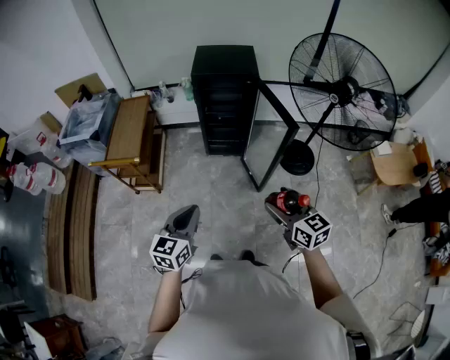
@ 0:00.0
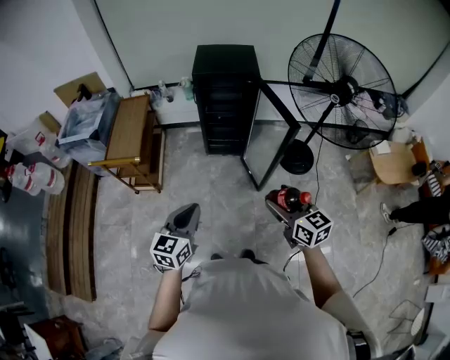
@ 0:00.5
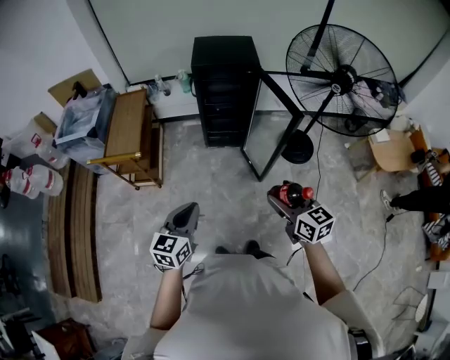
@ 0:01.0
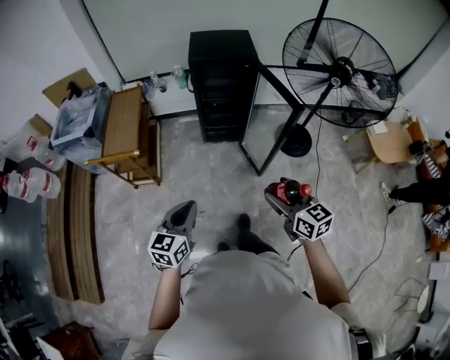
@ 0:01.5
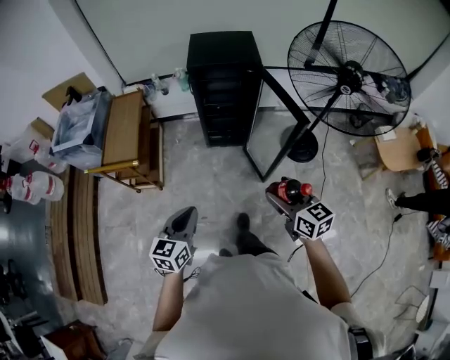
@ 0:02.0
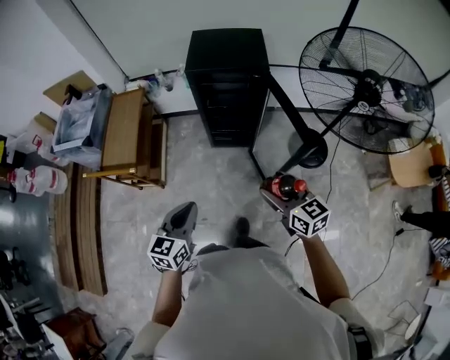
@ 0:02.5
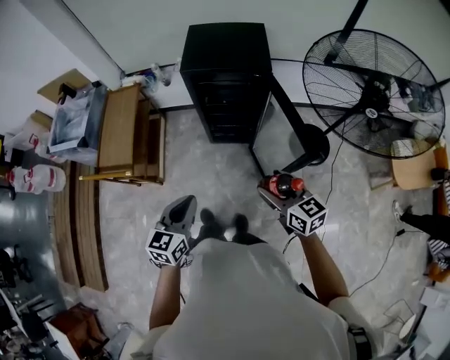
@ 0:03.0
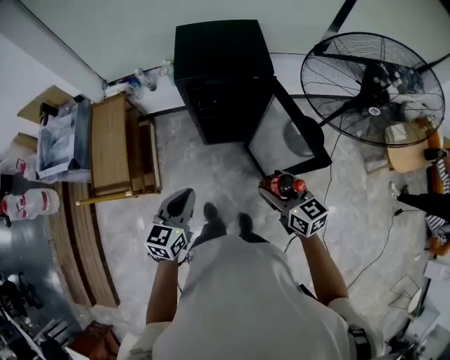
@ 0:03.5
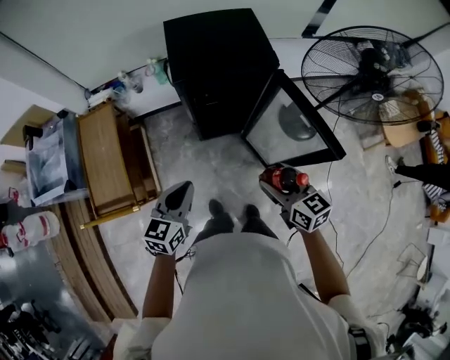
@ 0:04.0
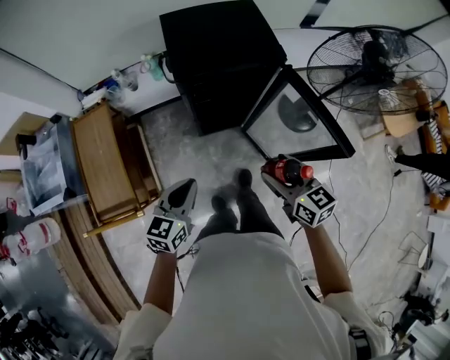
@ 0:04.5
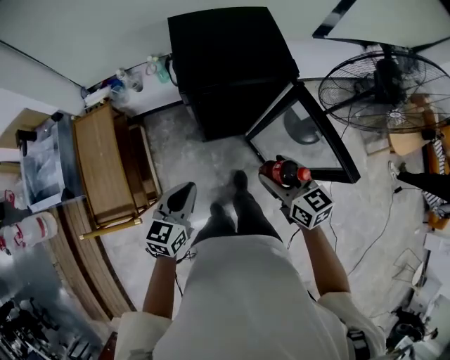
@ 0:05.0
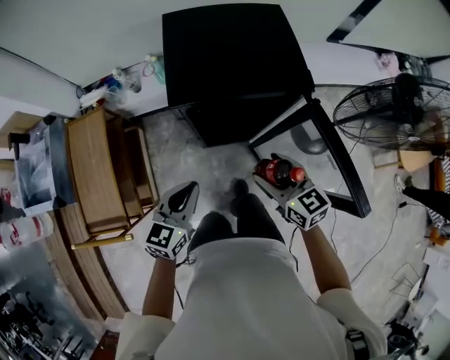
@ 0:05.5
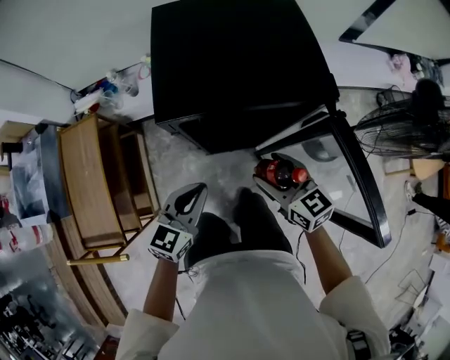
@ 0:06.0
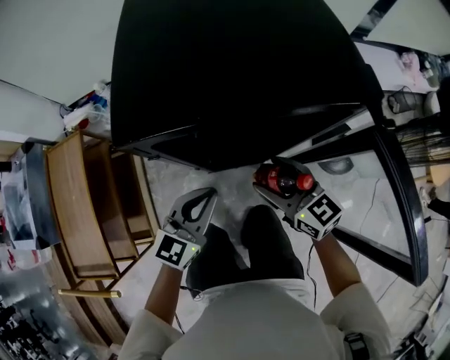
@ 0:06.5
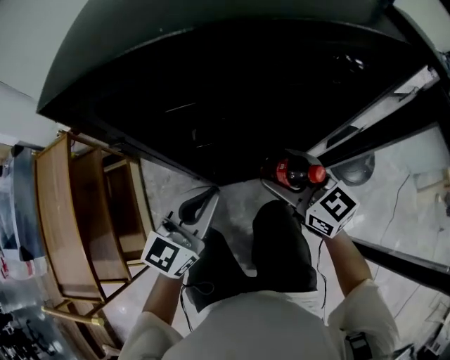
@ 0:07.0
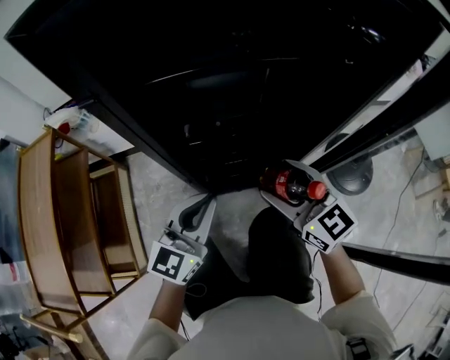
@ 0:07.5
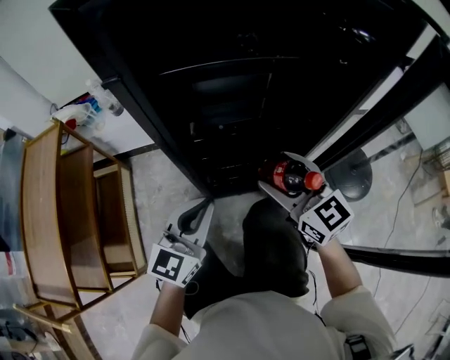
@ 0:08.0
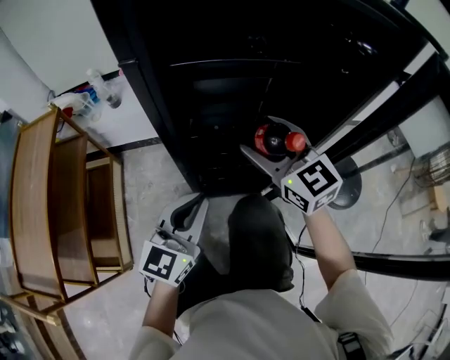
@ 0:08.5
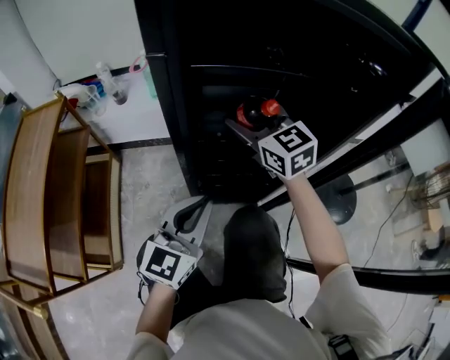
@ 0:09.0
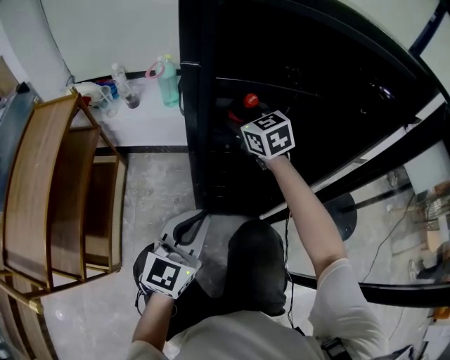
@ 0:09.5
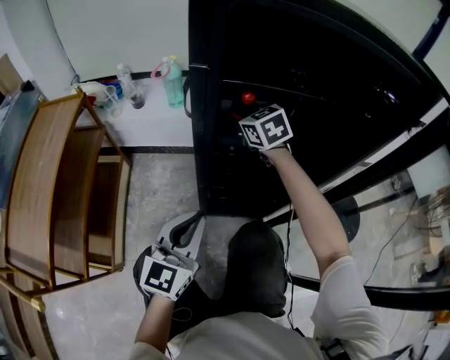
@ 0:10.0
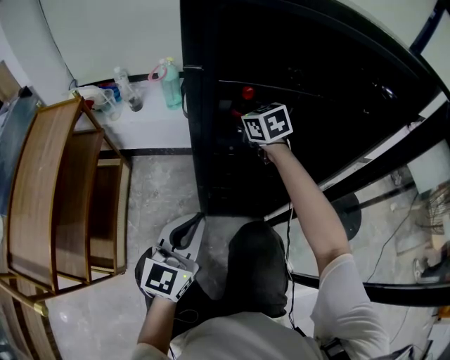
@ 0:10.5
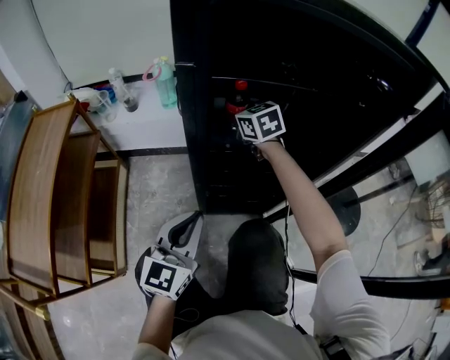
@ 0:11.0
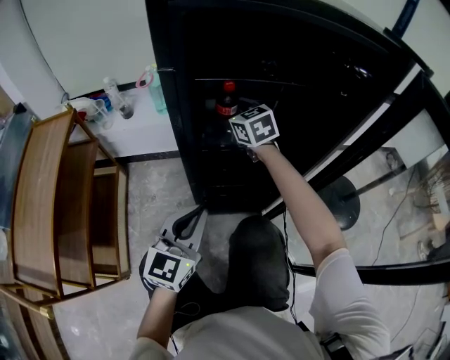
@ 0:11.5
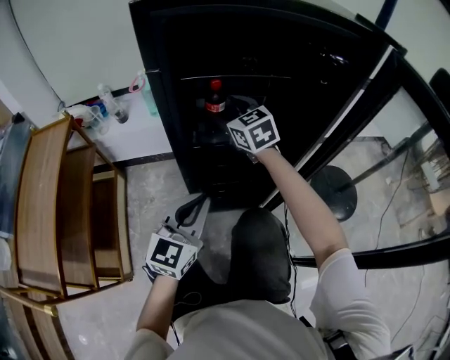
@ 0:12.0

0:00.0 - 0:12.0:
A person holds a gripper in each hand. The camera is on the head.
0:00.0 - 0:02.0: The two grippers go some 5 cm forward.
0:02.0 - 0:04.0: Both grippers travel together forward, approximately 35 cm.
0:04.0 - 0:06.0: The two grippers go about 30 cm forward and downward.
0:06.0 - 0:08.0: The grippers both shift downward by some 25 cm. The right gripper rotates about 20 degrees.
0:08.0 - 0:10.0: The left gripper travels to the left by some 5 cm. The right gripper goes roughly 25 cm forward and to the left, and turns by some 20 degrees.
0:10.0 - 0:12.0: The right gripper moves about 5 cm. The left gripper goes approximately 5 cm to the right.

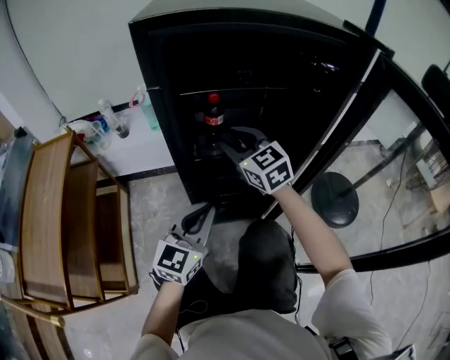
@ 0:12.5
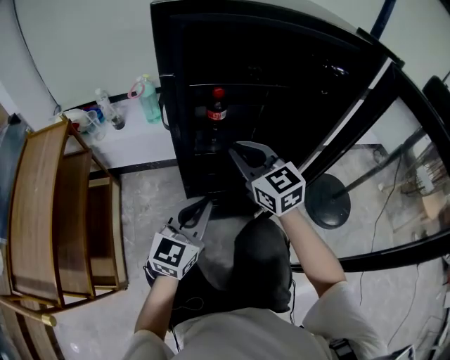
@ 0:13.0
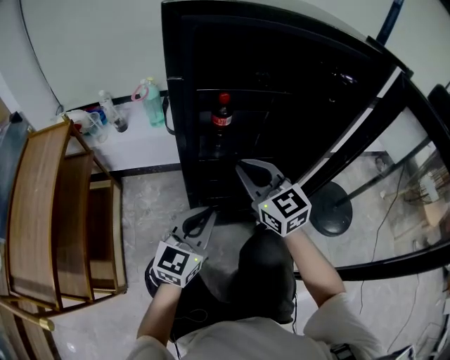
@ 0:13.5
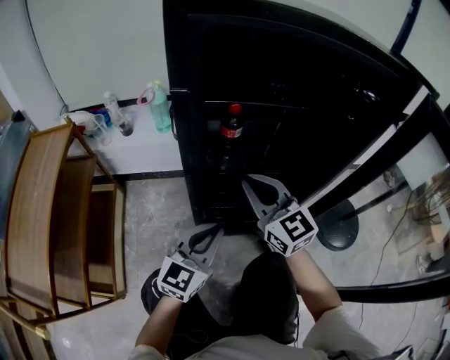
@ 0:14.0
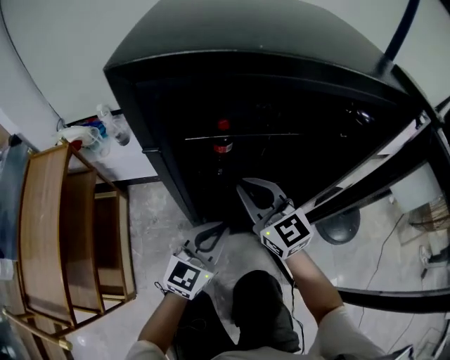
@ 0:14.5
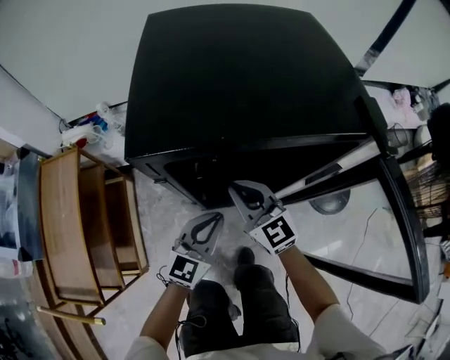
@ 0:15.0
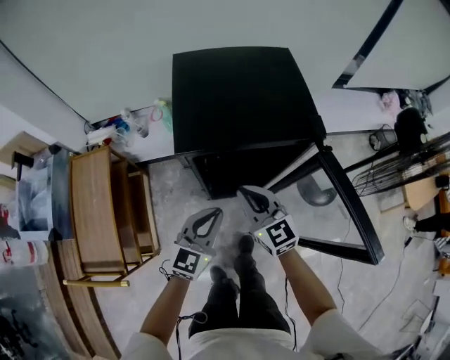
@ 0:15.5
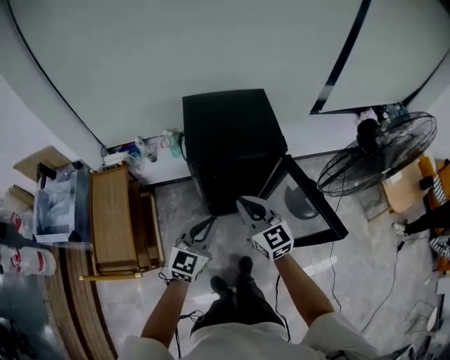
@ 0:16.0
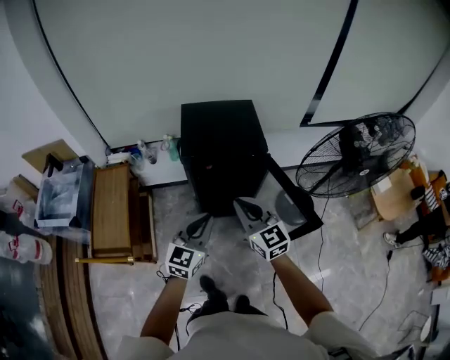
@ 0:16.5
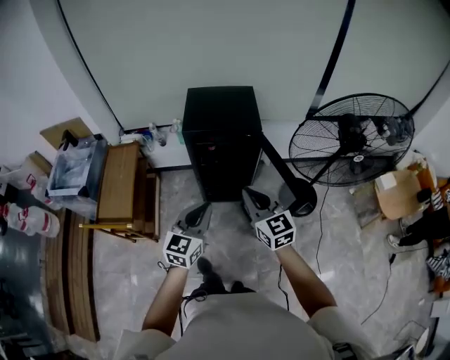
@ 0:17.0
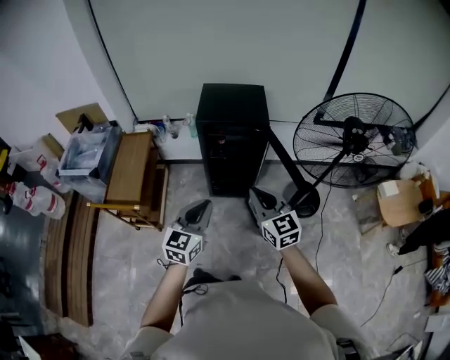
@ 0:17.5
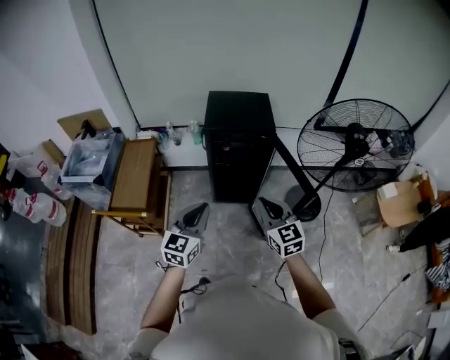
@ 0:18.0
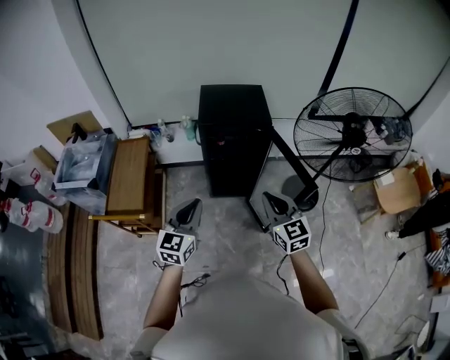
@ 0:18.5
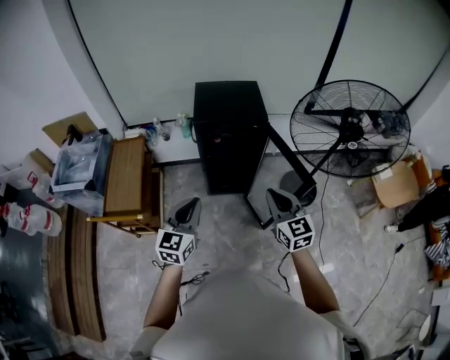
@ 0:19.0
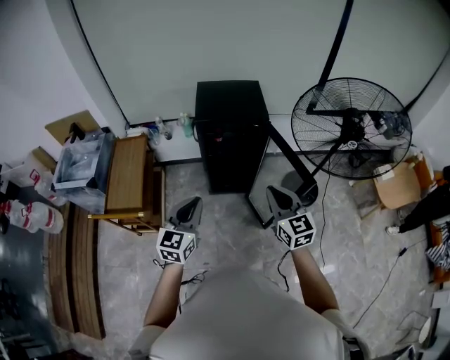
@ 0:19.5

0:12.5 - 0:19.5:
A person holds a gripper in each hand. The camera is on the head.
0:12.5 - 0:14.5: The left gripper travels forward by about 5 cm, while the right gripper closes its fingers.
0:14.5 - 0:16.0: The right gripper moves upward and backward, approximately 40 cm; the left gripper travels upward by some 40 cm.
0:16.0 - 0:17.5: The left gripper is displaced backward and upward by about 30 cm; the right gripper heads backward, to the right and upward, covering approximately 30 cm.
0:17.5 - 0:19.5: The left gripper shifts about 10 cm to the left.

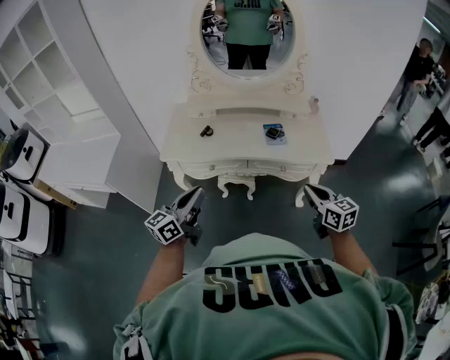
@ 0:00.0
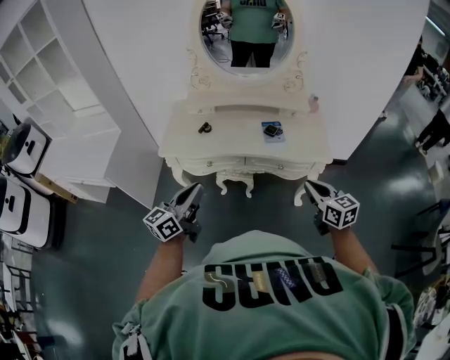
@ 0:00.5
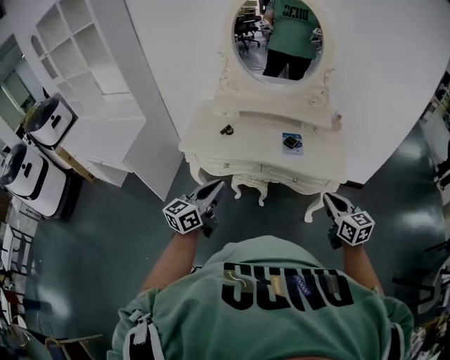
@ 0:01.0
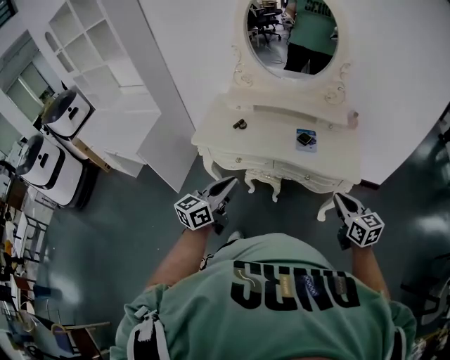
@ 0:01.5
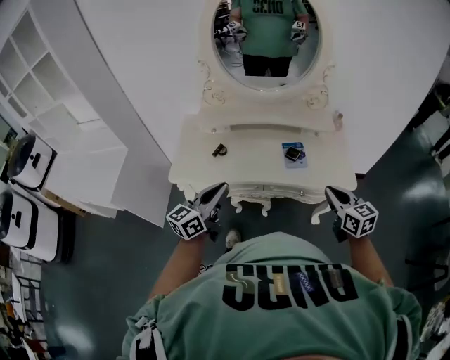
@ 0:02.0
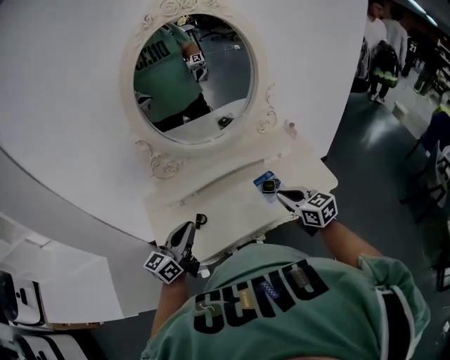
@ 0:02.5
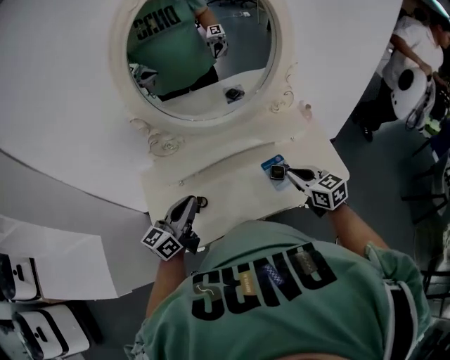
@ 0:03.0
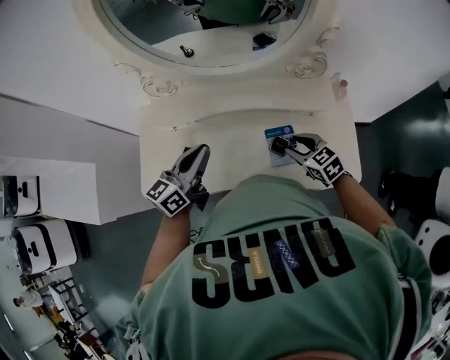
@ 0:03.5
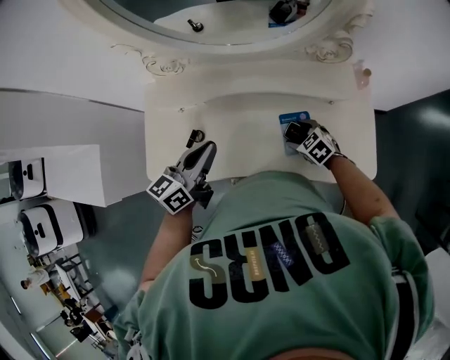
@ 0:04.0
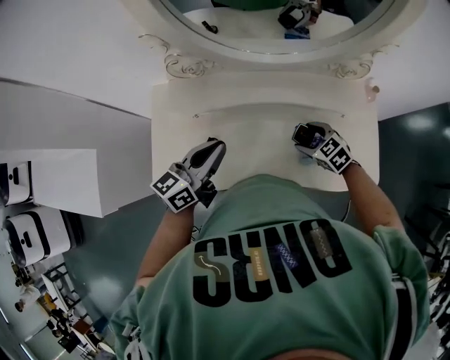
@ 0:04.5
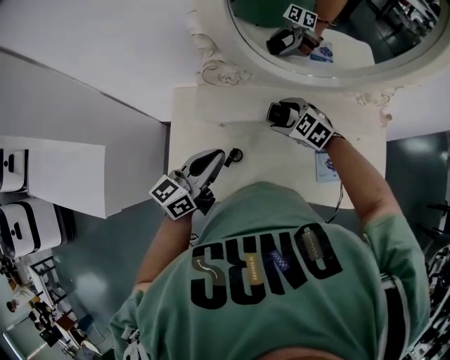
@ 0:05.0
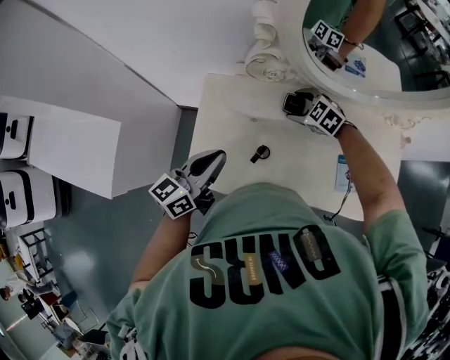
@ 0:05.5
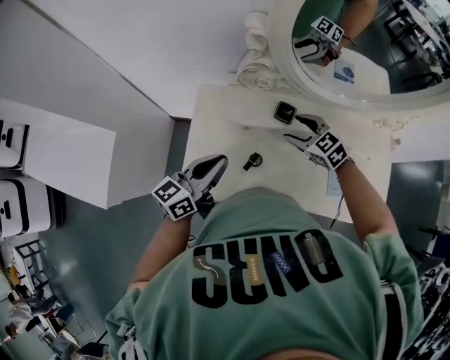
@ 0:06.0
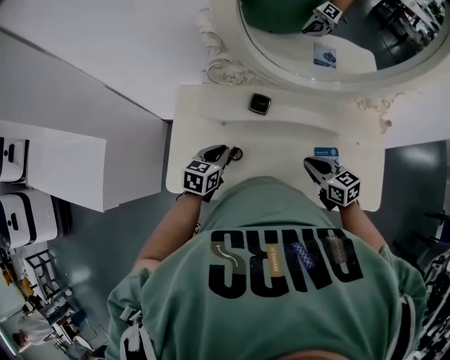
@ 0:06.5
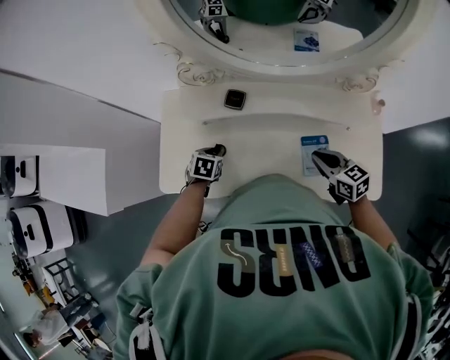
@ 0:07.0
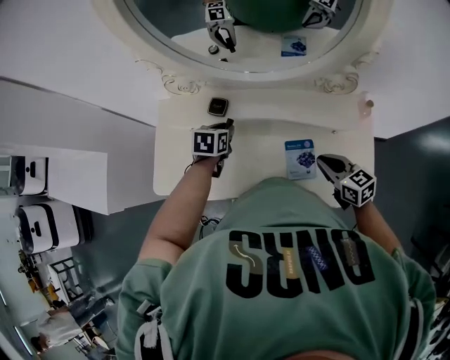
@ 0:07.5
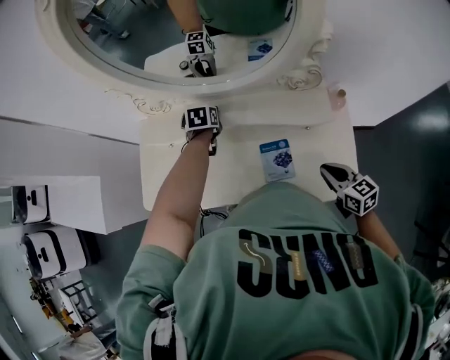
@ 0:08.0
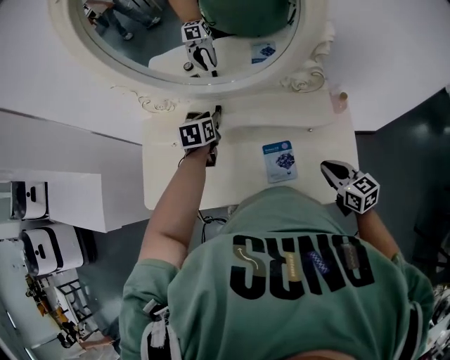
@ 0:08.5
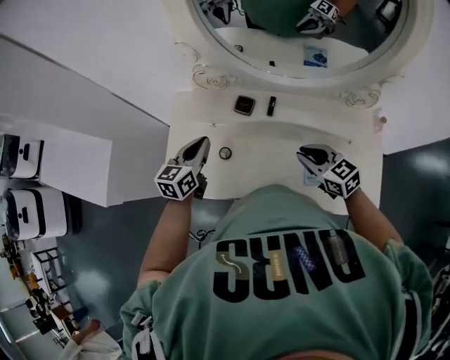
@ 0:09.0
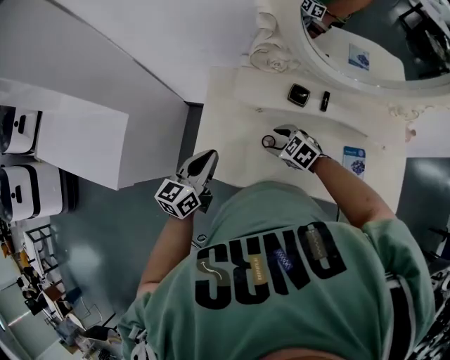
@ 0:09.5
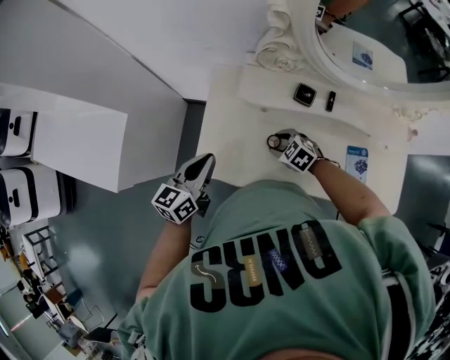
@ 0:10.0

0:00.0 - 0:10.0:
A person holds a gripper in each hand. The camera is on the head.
0:00.0 - 0:02.0: Both grippers move forward, roughly 15 cm.
0:02.0 - 0:04.0: The left gripper is displaced forward by some 30 cm; the right gripper is displaced forward and downward by approximately 40 cm, angles its fingers downward, by some 40 degrees, and opens up.
0:04.0 - 0:06.0: The left gripper heads to the left, covering approximately 25 cm, while the right gripper moves to the left, forward and upward, about 35 cm.
0:06.0 - 0:08.0: The left gripper shifts about 40 cm to the right, forward and downward, tilts its fingers about 60 degrees downward, and opens its fingers; the right gripper heads to the right and backward, covering about 40 cm, turns by approximately 40 degrees, and closes.
0:08.0 - 0:10.0: The left gripper travels to the left by roughly 40 cm, tips its fingers upward by roughly 40 degrees, and closes up; the right gripper is displaced to the left and forward by approximately 50 cm, angles its fingers downward, by about 30 degrees, and opens its fingers.
